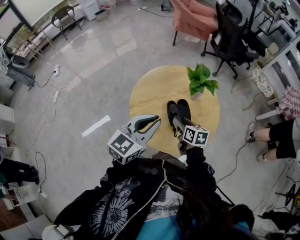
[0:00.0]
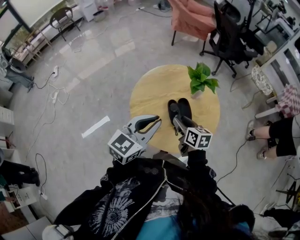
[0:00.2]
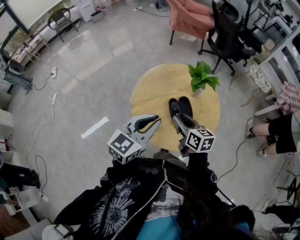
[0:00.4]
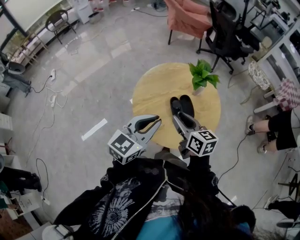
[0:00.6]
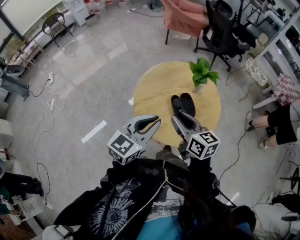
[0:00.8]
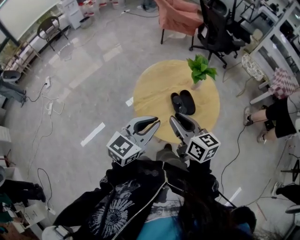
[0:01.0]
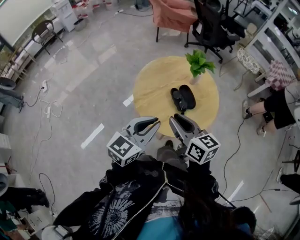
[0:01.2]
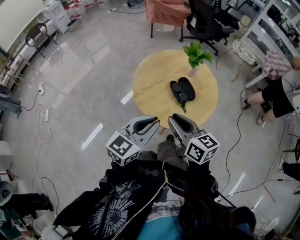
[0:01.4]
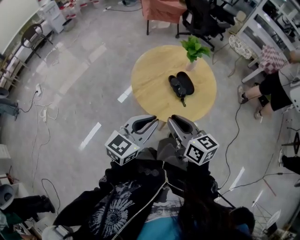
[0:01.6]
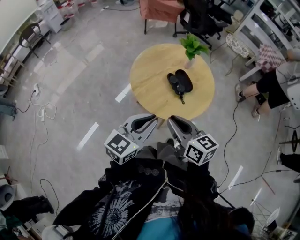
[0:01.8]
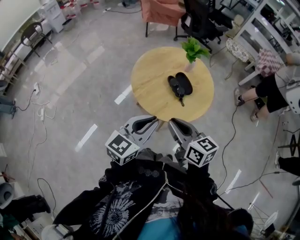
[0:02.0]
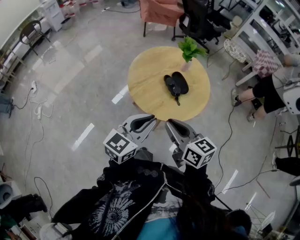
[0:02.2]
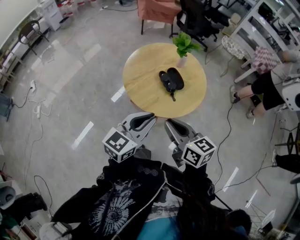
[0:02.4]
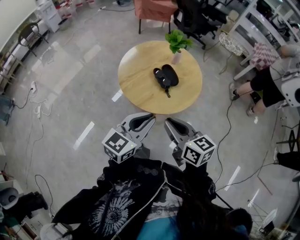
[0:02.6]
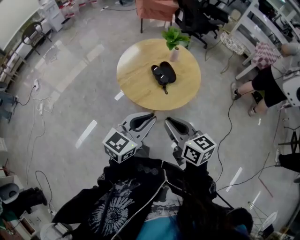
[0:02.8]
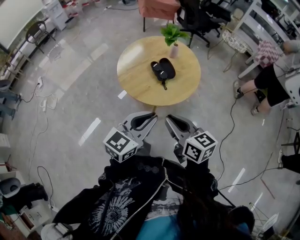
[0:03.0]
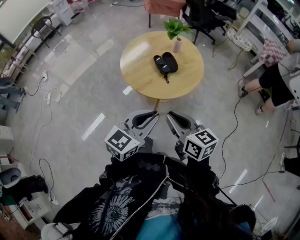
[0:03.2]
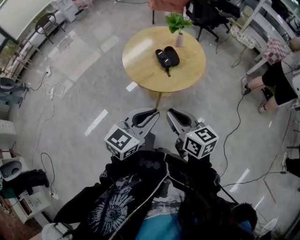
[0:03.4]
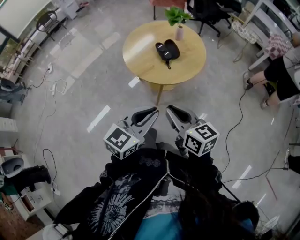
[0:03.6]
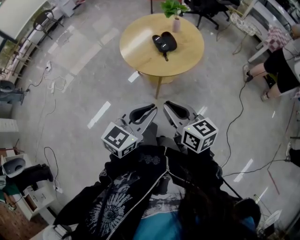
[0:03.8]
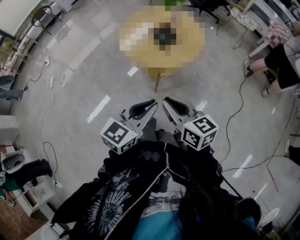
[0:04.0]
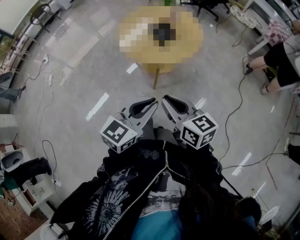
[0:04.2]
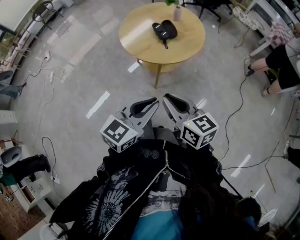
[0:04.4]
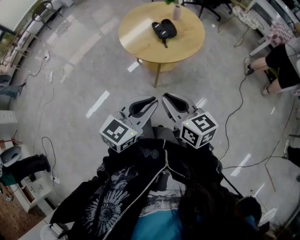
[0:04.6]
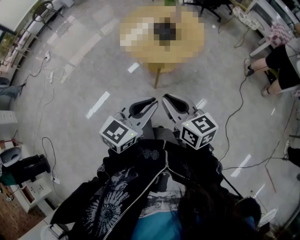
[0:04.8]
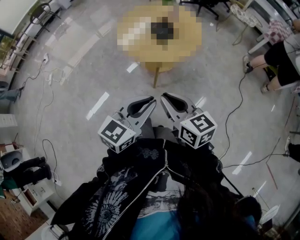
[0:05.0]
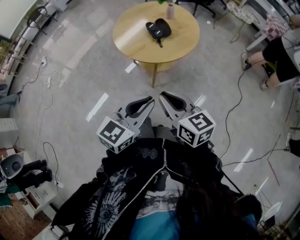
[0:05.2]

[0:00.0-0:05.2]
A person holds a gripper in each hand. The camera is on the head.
0:00.0 to 0:01.8: The left gripper heads backward and to the left, covering some 20 cm; the right gripper goes roughly 30 cm backward, upward and to the left, swivels some 20 degrees, and closes up.
0:01.8 to 0:03.4: Both grippers move to the right and backward, some 20 cm.
0:03.4 to 0:05.2: Both grippers travel together backward, approximately 5 cm.

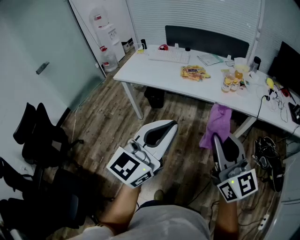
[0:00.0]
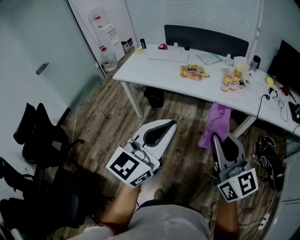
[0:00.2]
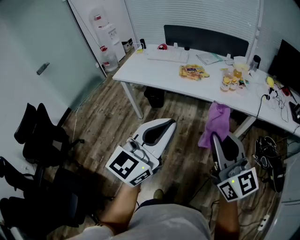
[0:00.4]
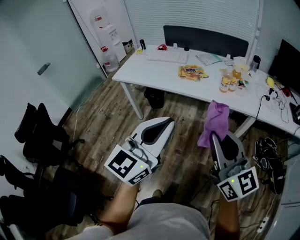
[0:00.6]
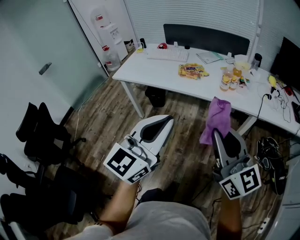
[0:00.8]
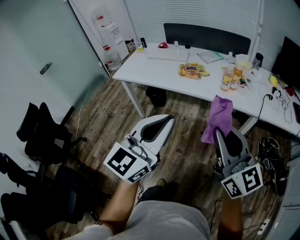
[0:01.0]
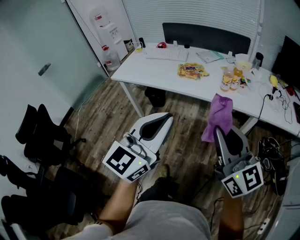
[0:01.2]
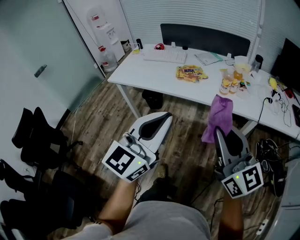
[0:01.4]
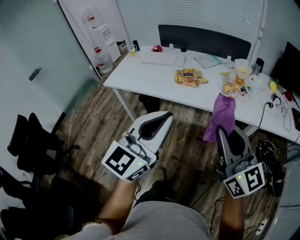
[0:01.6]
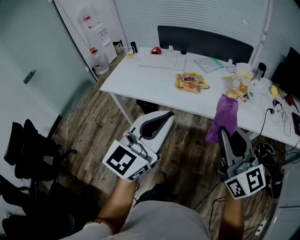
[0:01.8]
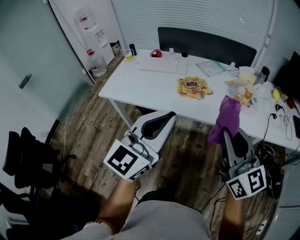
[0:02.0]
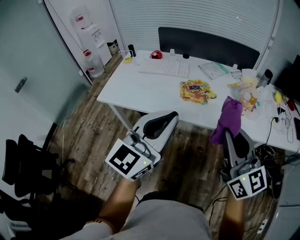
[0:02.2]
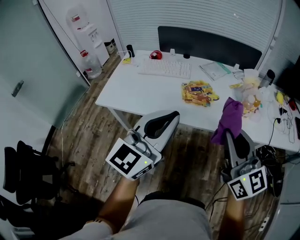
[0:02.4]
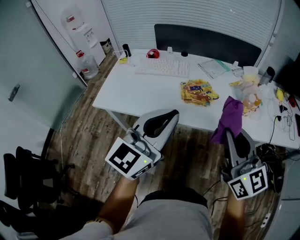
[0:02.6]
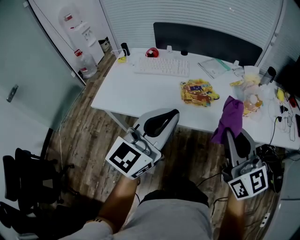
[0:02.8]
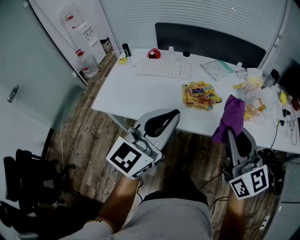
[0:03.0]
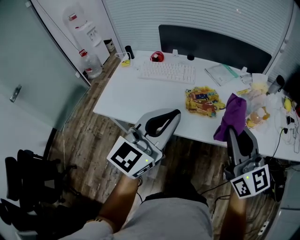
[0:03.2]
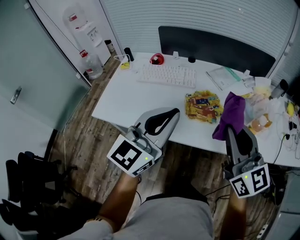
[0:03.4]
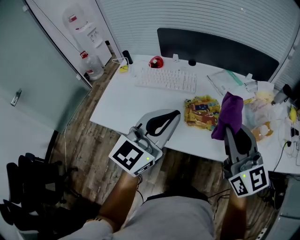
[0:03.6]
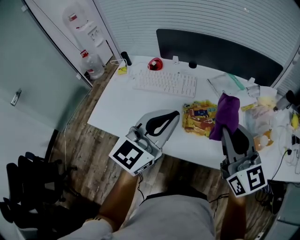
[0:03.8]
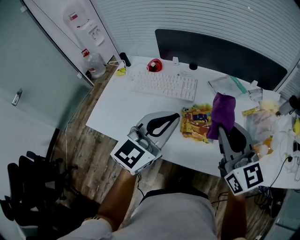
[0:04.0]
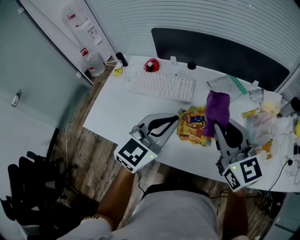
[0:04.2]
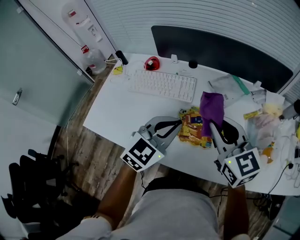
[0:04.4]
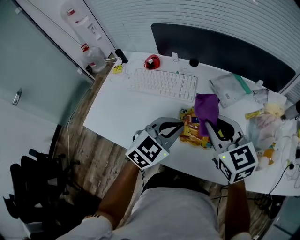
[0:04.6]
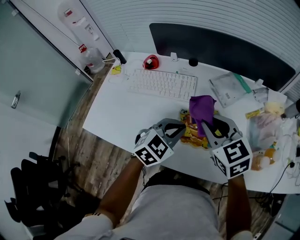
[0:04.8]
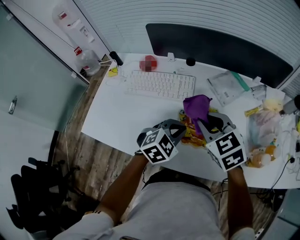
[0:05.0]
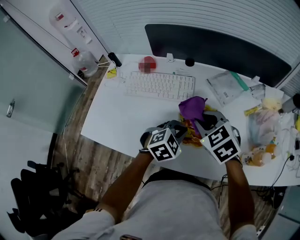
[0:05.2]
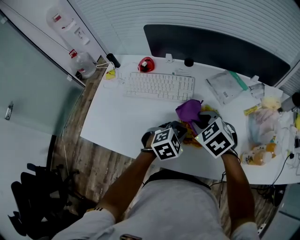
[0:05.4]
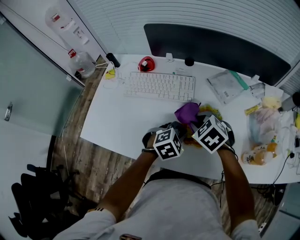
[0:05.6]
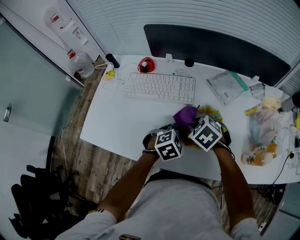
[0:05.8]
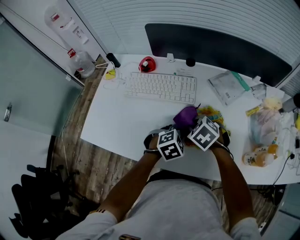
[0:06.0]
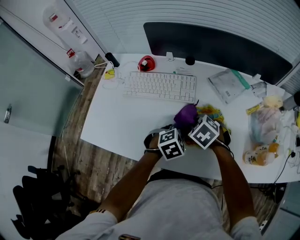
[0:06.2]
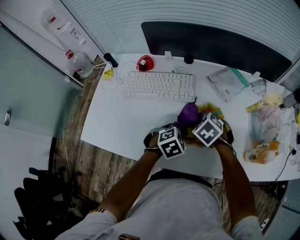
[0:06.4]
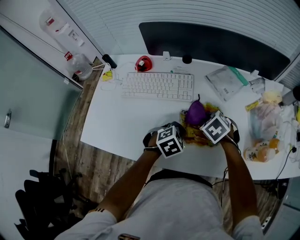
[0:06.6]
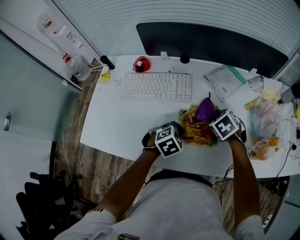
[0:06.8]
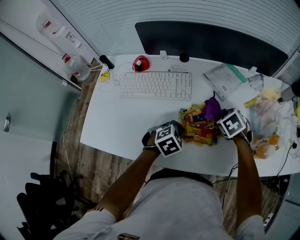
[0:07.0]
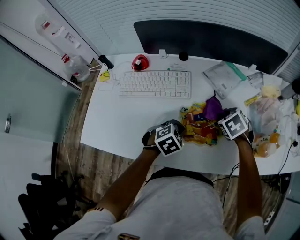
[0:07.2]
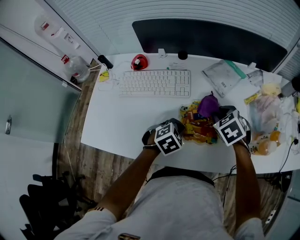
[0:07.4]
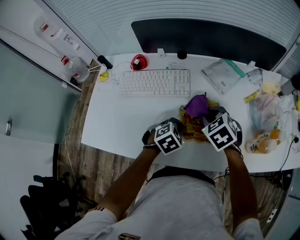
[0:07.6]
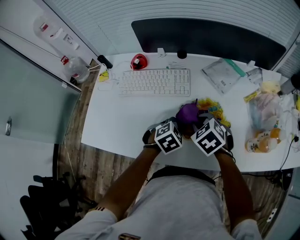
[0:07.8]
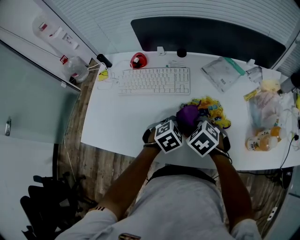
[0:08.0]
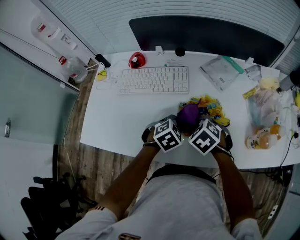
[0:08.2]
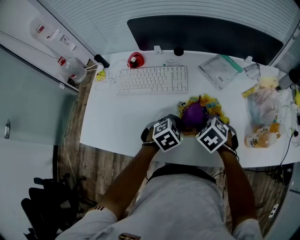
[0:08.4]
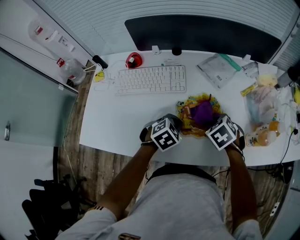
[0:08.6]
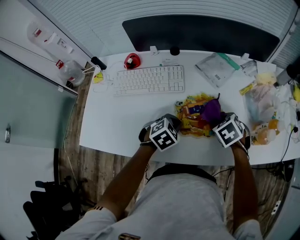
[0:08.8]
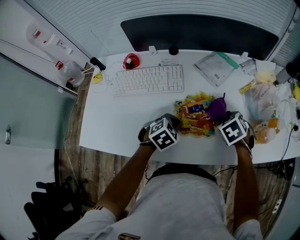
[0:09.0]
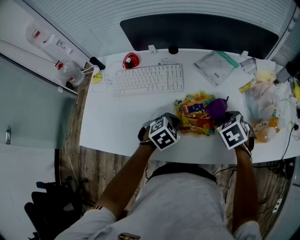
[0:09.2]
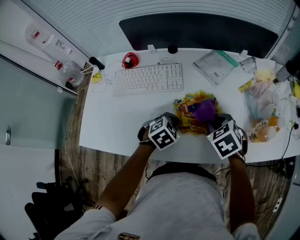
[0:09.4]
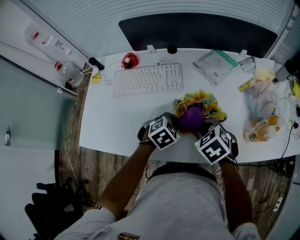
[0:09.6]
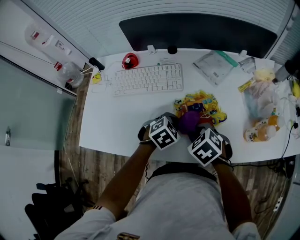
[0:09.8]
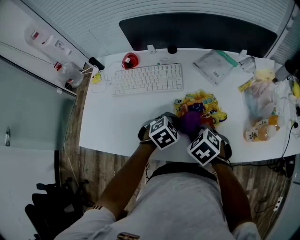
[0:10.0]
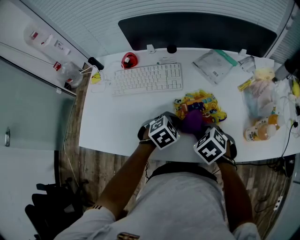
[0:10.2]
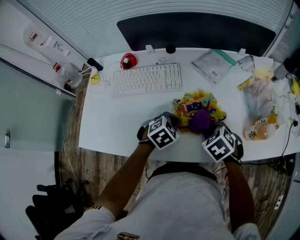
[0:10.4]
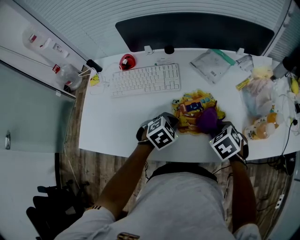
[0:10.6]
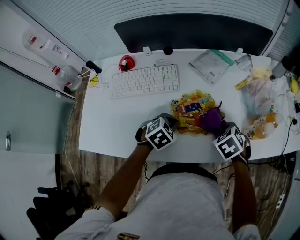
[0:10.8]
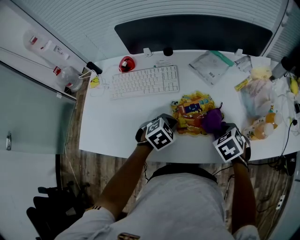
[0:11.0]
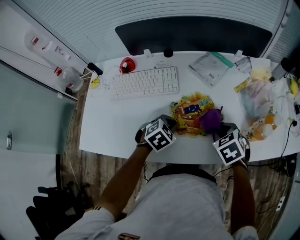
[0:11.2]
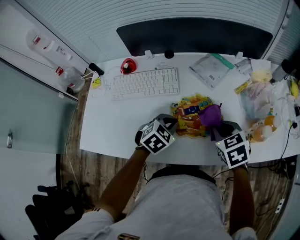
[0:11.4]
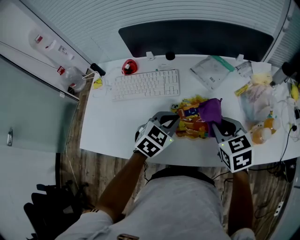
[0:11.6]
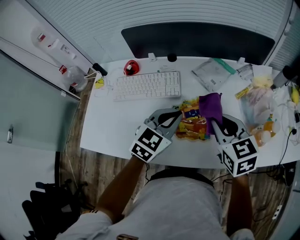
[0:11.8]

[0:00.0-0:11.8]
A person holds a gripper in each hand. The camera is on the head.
0:00.0 to 0:01.4: The grippers both shift forward by approximately 10 cm.
0:01.4 to 0:03.0: The two grippers go roughly 30 cm forward and to the left.
0:03.0 to 0:04.4: The left gripper travels forward and downward by approximately 25 cm, and swivels about 30 degrees. Meanwhile the right gripper moves forward, about 25 cm, and rotates roughly 20 degrees.
0:04.4 to 0:06.0: The right gripper is displaced downward and to the left by some 25 cm, and tilts its fingers about 50 degrees downward. The left gripper moves downward, roughly 20 cm, and tips its fingers downward by roughly 40 degrees.
0:06.0 to 0:07.4: The right gripper moves to the right, approximately 10 cm, and changes its angle by approximately 20 degrees.
0:07.4 to 0:08.8: The right gripper reaches about 10 cm to the left, then returns.
0:08.8 to 0:10.4: The right gripper goes roughly 5 cm backward, and reaches approximately 10 cm to the left, then returns.
0:10.4 to 0:11.8: The grippers both shift upward by some 15 cm. The left gripper tilts its fingers some 30 degrees upward, while the right gripper tips its fingers upward by some 40 degrees.

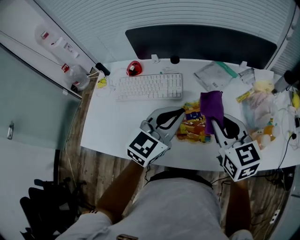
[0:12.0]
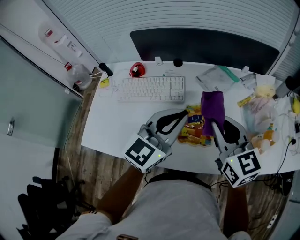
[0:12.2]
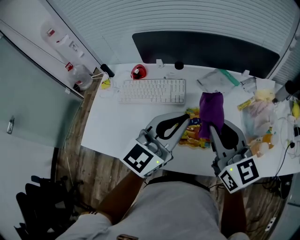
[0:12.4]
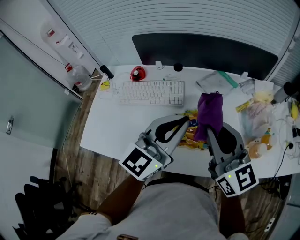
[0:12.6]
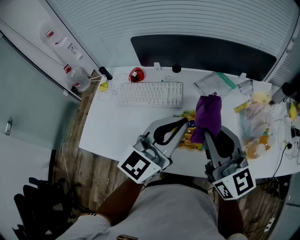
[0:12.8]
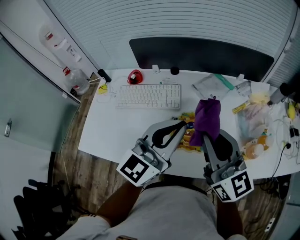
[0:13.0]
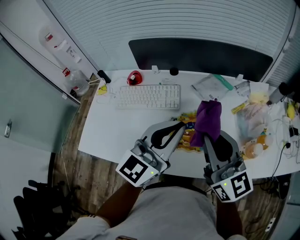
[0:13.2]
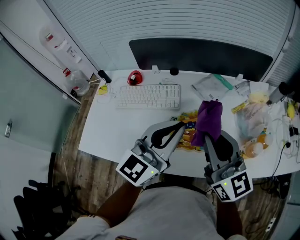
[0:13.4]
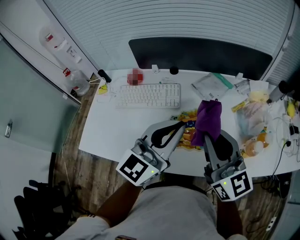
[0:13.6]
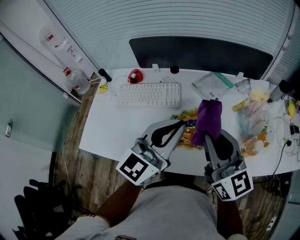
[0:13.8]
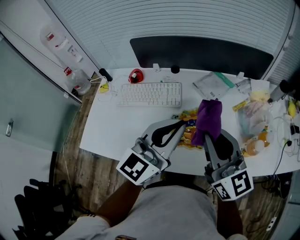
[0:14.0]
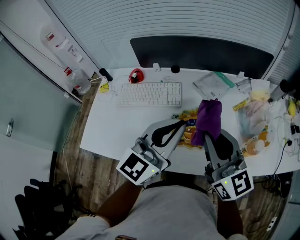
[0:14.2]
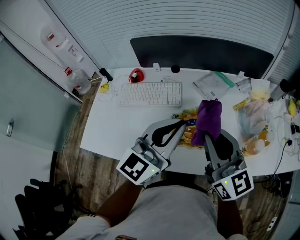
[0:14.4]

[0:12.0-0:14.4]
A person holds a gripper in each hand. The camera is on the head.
0:12.0 to 0:13.2: Both grippers travel together upward, roughly 10 cm. The right gripper rotates about 30 degrees.
0:13.2 to 0:14.4: The two grippers keep their place.

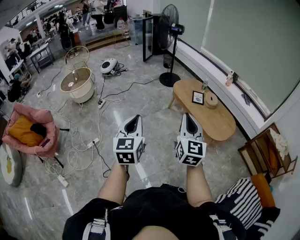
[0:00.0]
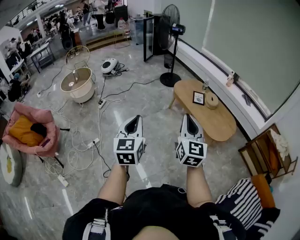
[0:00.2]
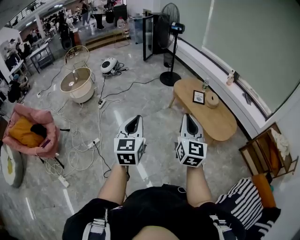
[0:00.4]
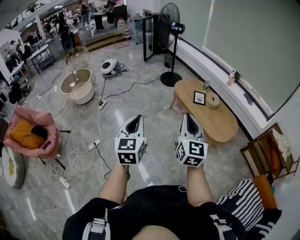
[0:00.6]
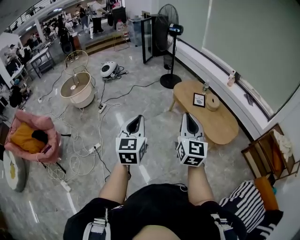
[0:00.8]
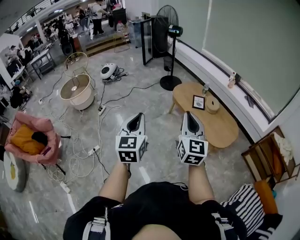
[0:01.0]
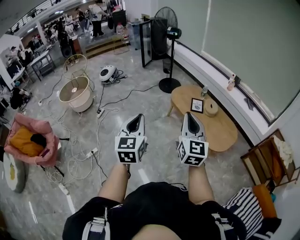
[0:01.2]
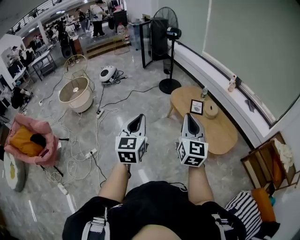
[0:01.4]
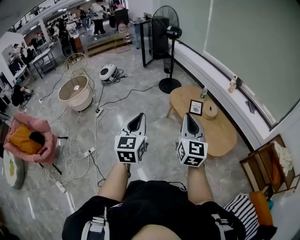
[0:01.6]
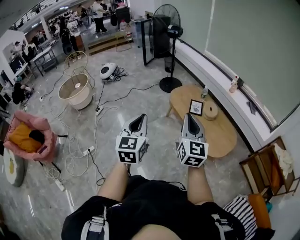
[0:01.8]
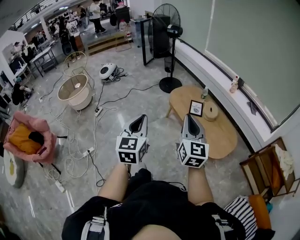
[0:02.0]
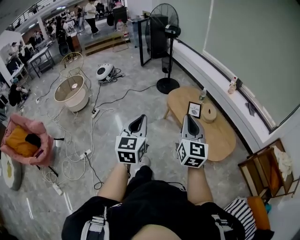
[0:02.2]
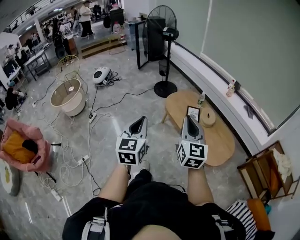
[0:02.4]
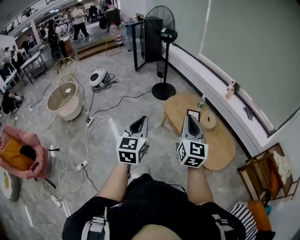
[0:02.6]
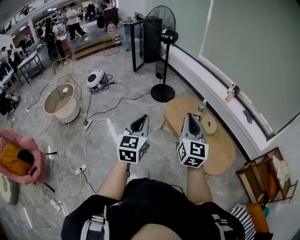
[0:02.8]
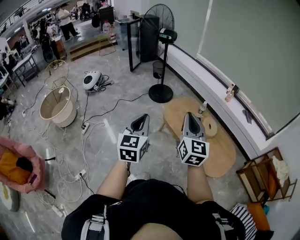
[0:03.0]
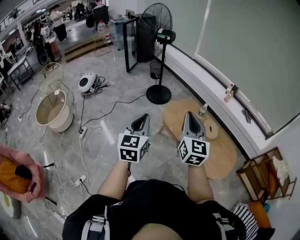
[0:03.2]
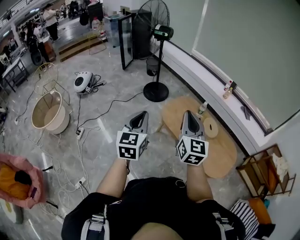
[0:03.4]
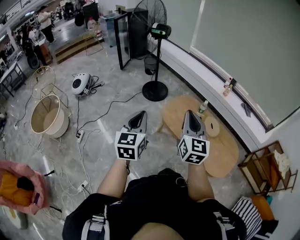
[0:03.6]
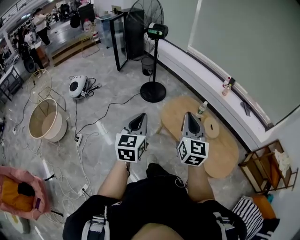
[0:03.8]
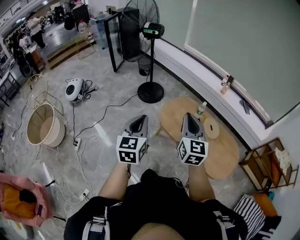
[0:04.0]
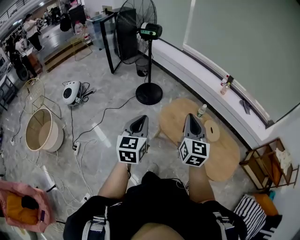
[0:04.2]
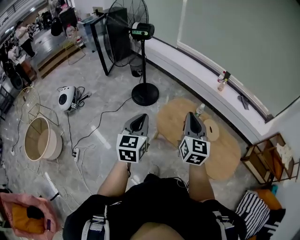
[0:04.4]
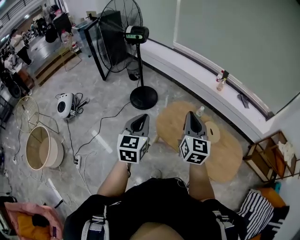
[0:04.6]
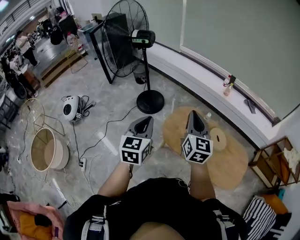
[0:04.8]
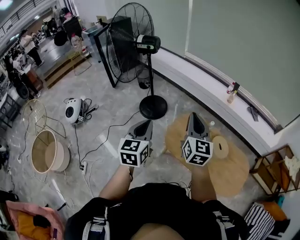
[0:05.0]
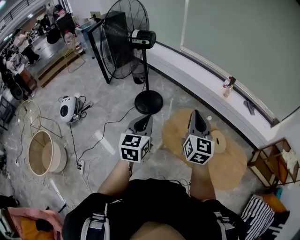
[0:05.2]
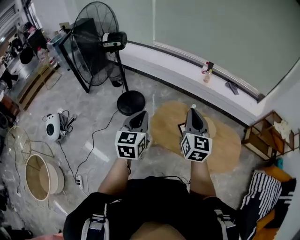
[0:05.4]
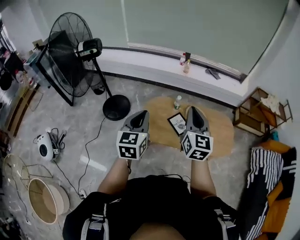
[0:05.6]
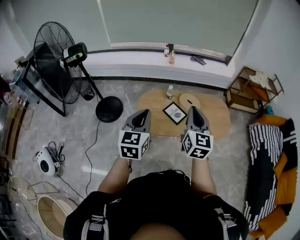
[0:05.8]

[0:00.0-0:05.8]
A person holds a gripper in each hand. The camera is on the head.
0:00.0 to 0:01.4: Both grippers travel together forward and to the right, about 20 cm.
0:01.4 to 0:02.8: The two grippers go about 30 cm forward.
0:02.8 to 0:04.4: Both grippers travel together forward, some 35 cm.
0:04.4 to 0:05.8: The left gripper changes its angle by about 40 degrees. Meanwhile the right gripper rotates some 40 degrees.
